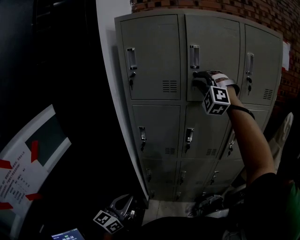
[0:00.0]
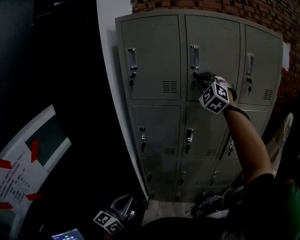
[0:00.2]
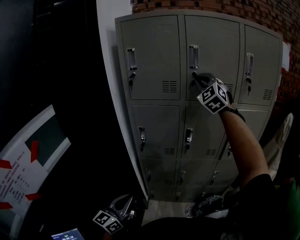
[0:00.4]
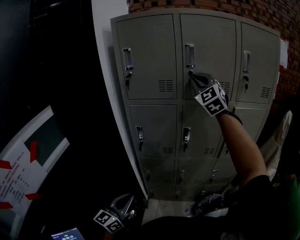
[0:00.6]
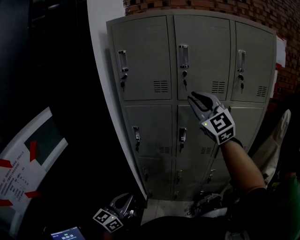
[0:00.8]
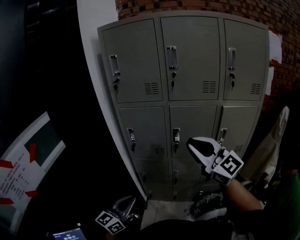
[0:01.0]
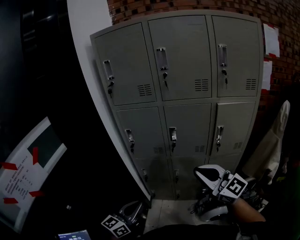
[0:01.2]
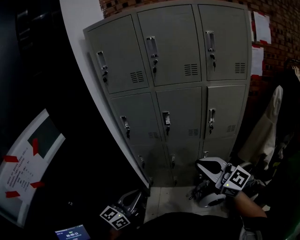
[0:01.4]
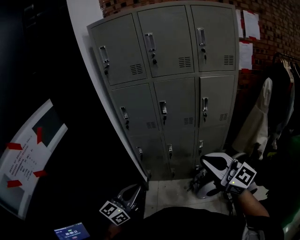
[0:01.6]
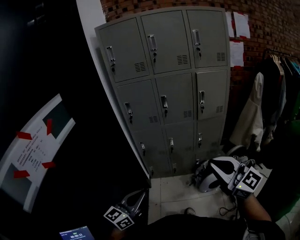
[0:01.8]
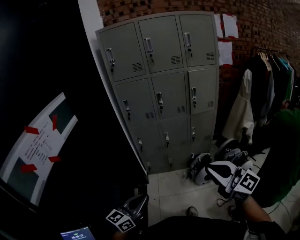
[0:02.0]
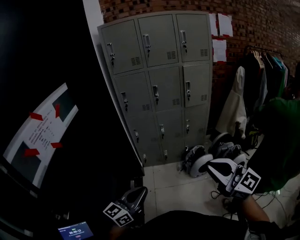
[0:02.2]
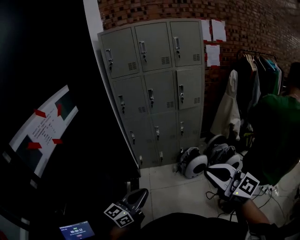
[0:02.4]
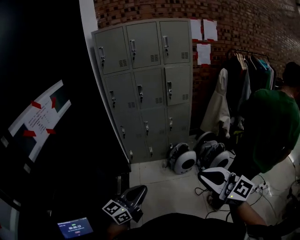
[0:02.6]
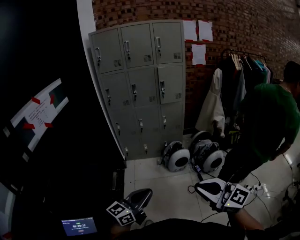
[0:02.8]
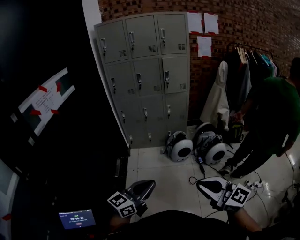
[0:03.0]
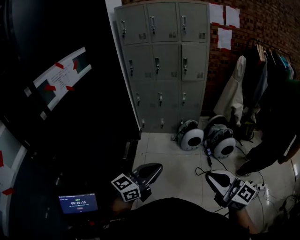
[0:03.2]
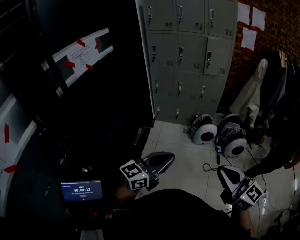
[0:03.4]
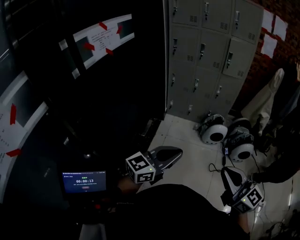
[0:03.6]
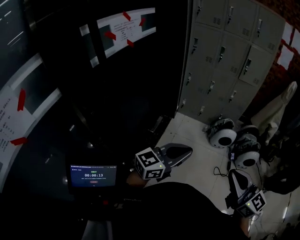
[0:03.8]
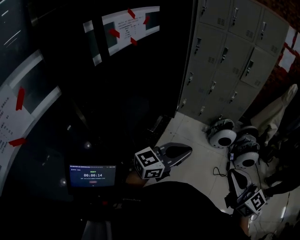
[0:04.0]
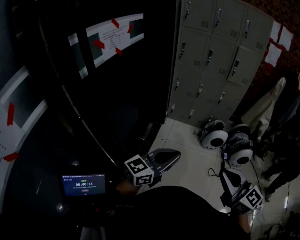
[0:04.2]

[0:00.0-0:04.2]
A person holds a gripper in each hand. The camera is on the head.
0:00.0 to 0:01.4: The left gripper travels to the right and backward by about 15 cm, while the right gripper shifts approximately 40 cm backward and downward, and twists approximately 90 degrees clockwise, seen from behind.
0:01.4 to 0:02.8: The pair of grippers is taken backward, about 60 cm. The left gripper rotates approximately 20 degrees.
0:02.8 to 0:04.2: The grippers both shift to the left by some 10 cm.

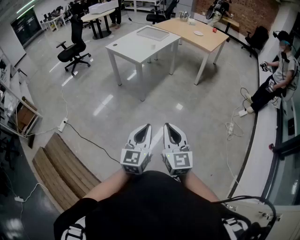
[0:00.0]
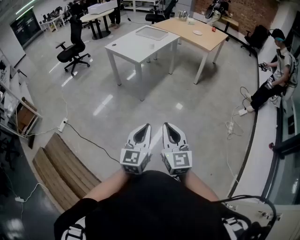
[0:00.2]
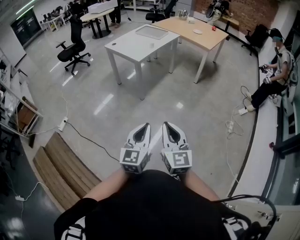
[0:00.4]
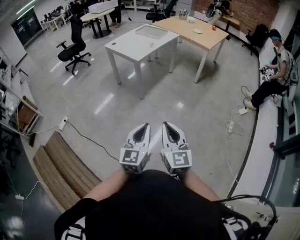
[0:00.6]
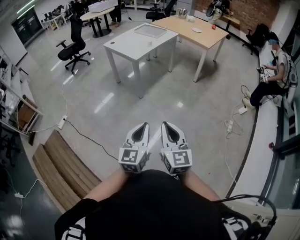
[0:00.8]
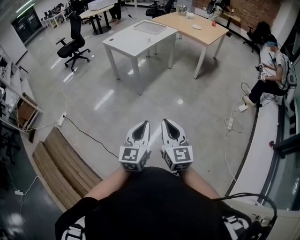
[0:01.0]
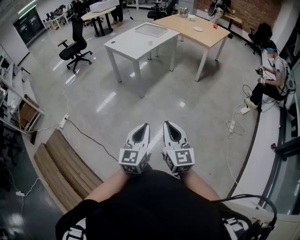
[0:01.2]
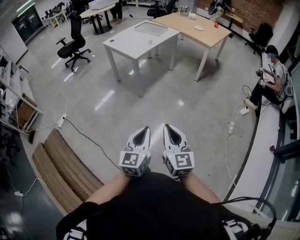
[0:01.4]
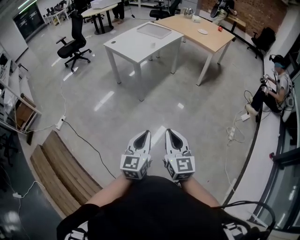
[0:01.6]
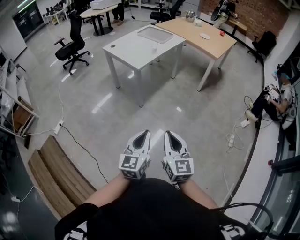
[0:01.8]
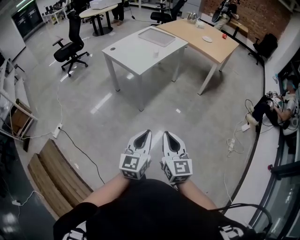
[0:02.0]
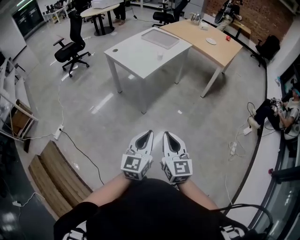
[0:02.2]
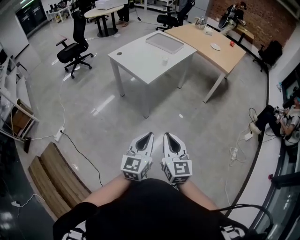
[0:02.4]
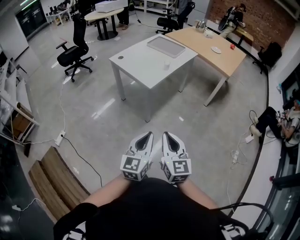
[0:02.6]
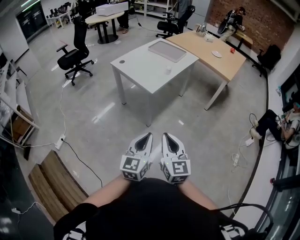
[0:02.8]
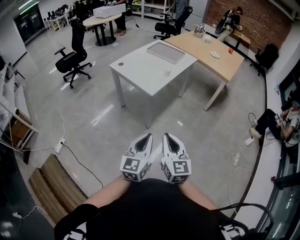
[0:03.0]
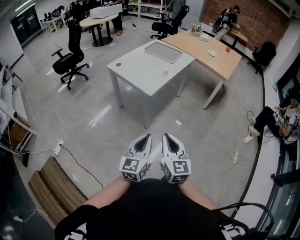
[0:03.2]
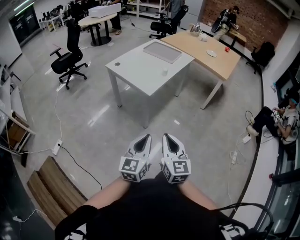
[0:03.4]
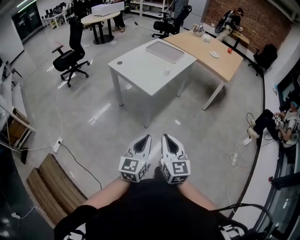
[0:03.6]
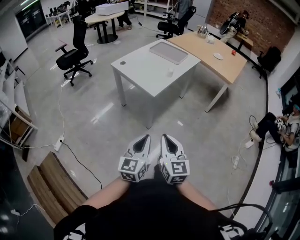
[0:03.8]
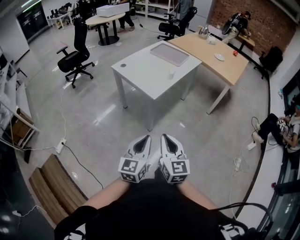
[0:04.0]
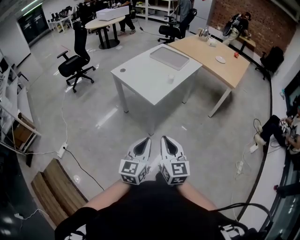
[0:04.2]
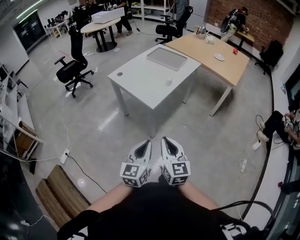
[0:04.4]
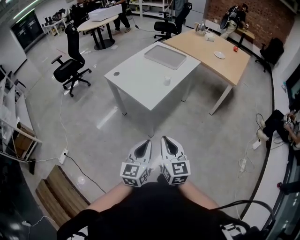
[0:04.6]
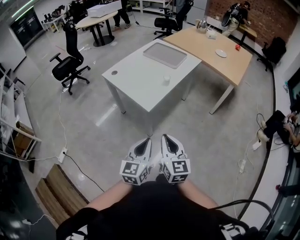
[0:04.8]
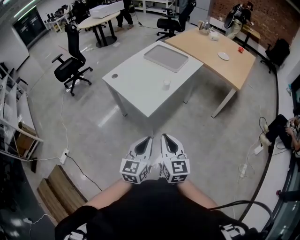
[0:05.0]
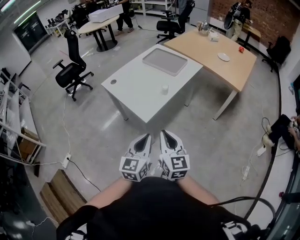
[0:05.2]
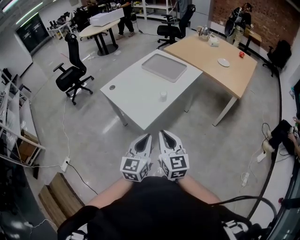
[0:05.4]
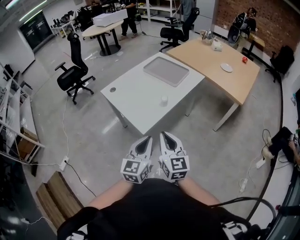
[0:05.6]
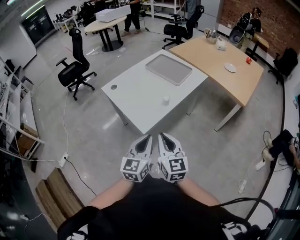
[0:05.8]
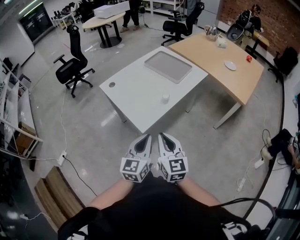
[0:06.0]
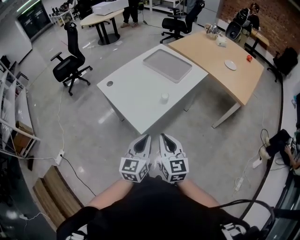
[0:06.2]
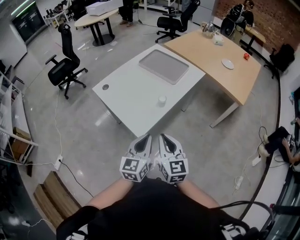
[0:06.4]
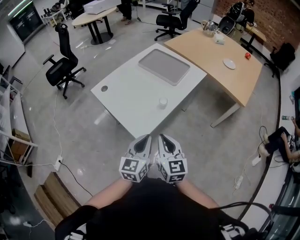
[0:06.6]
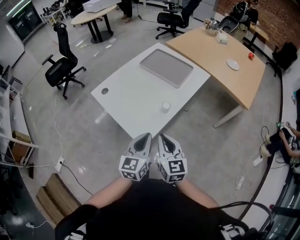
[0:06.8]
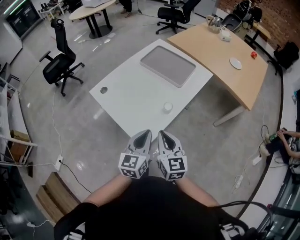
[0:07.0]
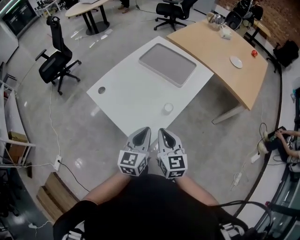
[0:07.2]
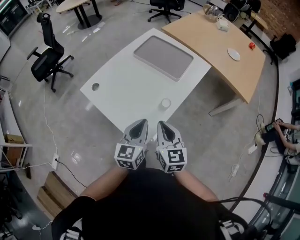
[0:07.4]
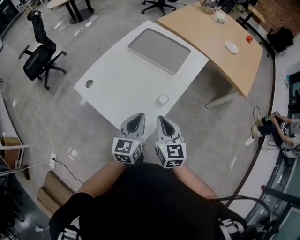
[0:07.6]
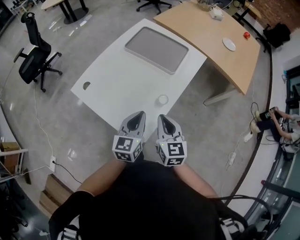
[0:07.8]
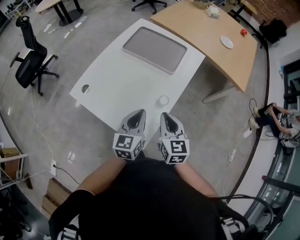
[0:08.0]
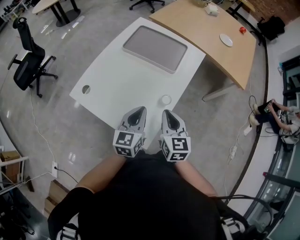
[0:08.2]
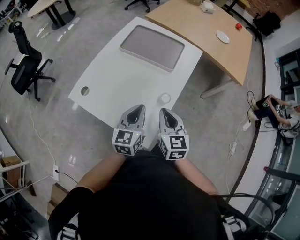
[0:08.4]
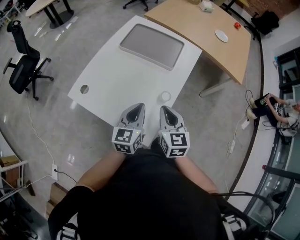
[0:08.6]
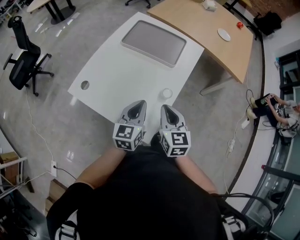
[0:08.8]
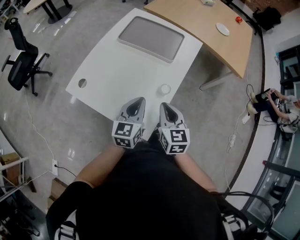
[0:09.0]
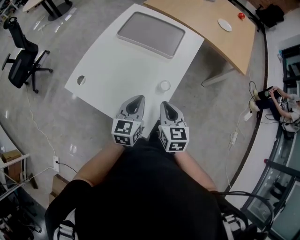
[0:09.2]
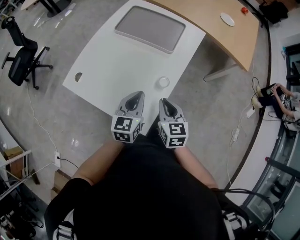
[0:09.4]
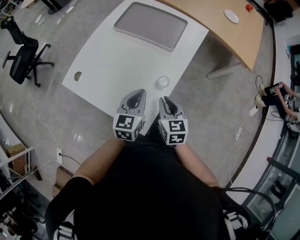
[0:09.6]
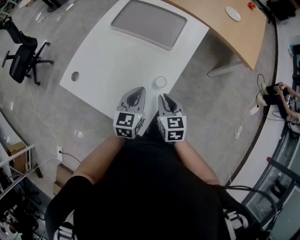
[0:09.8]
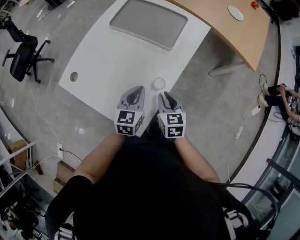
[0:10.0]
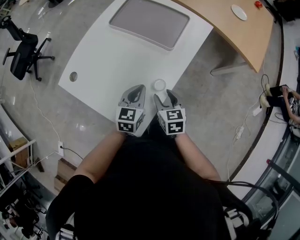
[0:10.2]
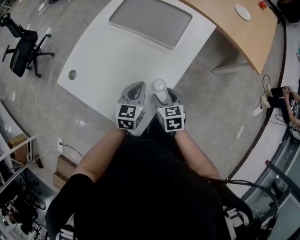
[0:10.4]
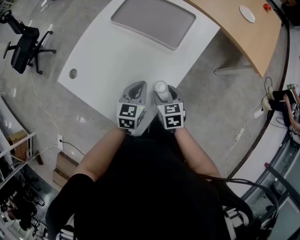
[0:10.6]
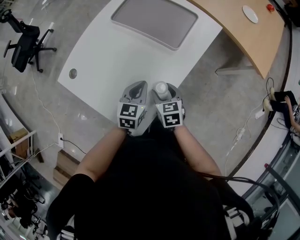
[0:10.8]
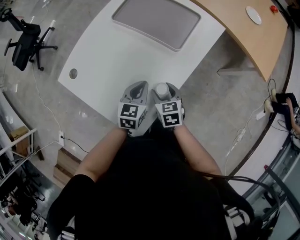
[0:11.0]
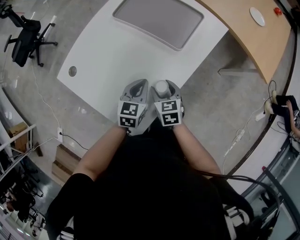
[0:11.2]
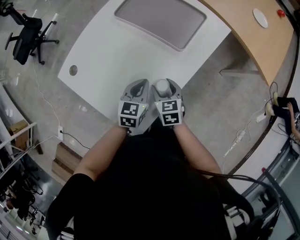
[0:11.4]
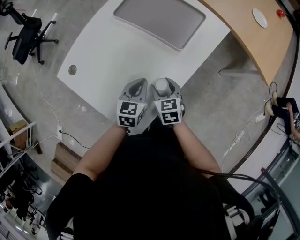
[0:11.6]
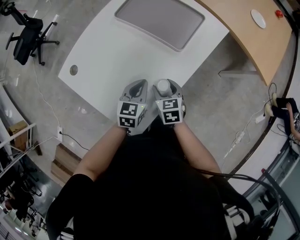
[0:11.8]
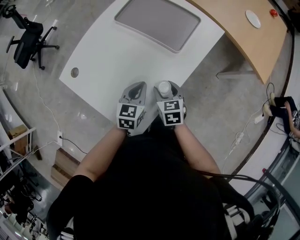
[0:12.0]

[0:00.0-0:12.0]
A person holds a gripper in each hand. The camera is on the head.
0:00.0 to 0:01.6: The left gripper heads forward and downward, covering about 10 cm. Meanwhile the right gripper travels forward and to the right by some 10 cm.
0:01.6 to 0:03.0: The grippers both shift forward and to the left by roughly 35 cm.
0:03.0 to 0:04.4: The two grippers go roughly 10 cm forward.
0:04.4 to 0:06.0: The grippers both shift forward by about 25 cm.
0:06.0 to 0:07.6: Both grippers travel together forward, approximately 30 cm.
0:07.6 to 0:09.0: The left gripper ends up approximately 5 cm from where it was.
0:09.0 to 0:10.4: The left gripper travels downward, forward and to the right by about 15 cm, while the right gripper is displaced downward and forward by approximately 20 cm, swivels approximately 20 degrees, and opens up.
0:10.4 to 0:12.0: The right gripper is displaced forward by approximately 5 cm.

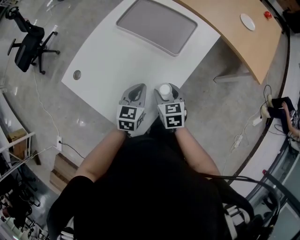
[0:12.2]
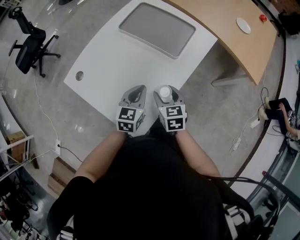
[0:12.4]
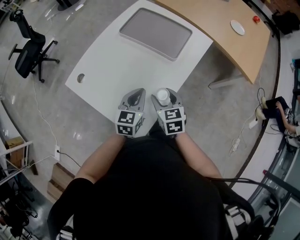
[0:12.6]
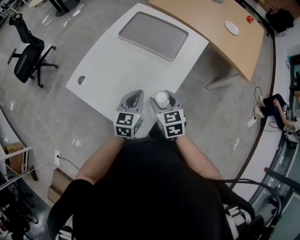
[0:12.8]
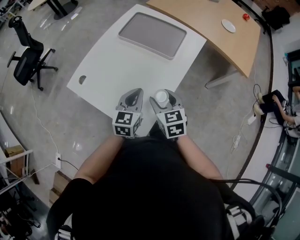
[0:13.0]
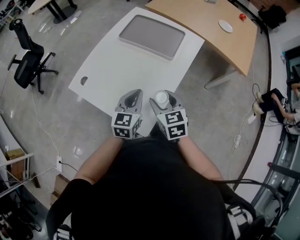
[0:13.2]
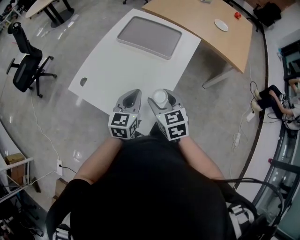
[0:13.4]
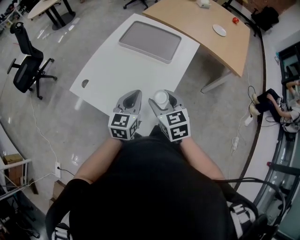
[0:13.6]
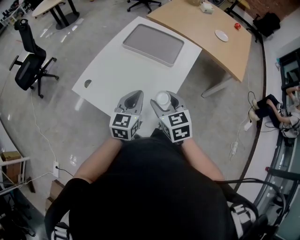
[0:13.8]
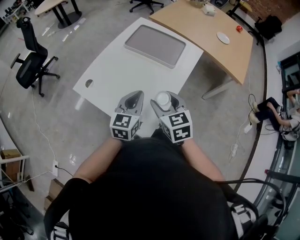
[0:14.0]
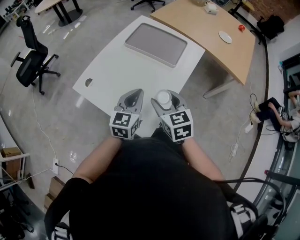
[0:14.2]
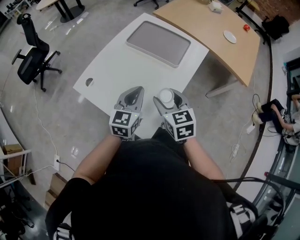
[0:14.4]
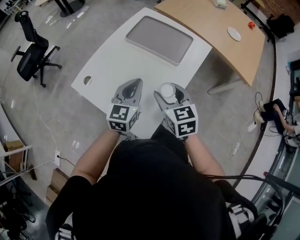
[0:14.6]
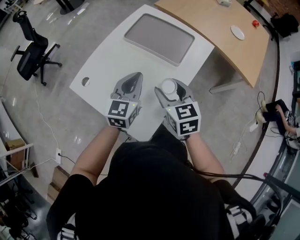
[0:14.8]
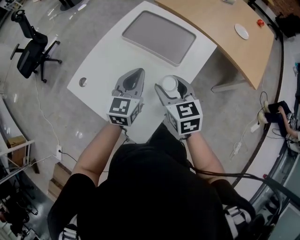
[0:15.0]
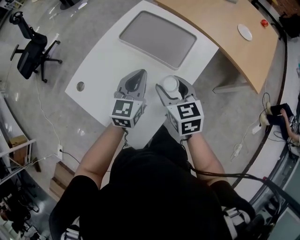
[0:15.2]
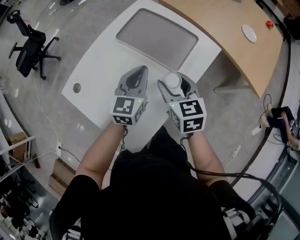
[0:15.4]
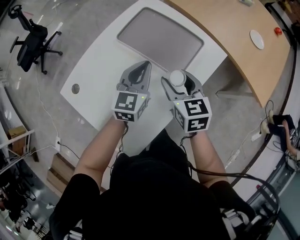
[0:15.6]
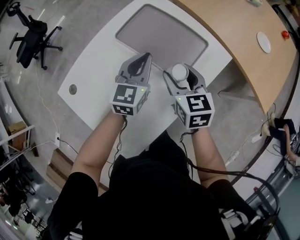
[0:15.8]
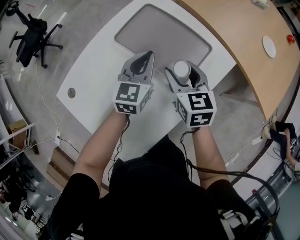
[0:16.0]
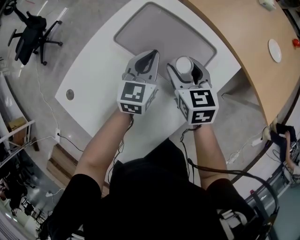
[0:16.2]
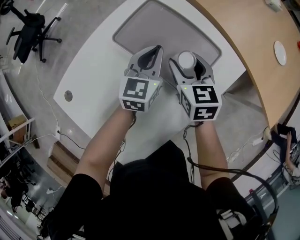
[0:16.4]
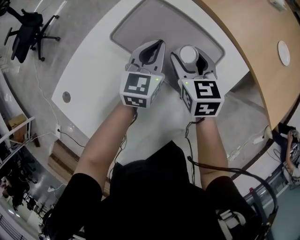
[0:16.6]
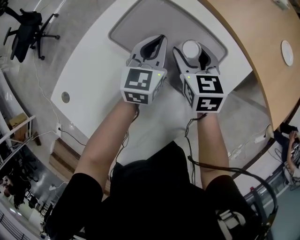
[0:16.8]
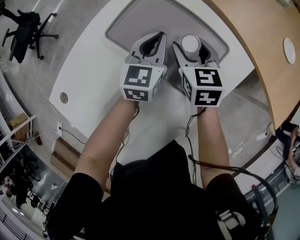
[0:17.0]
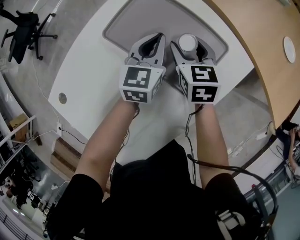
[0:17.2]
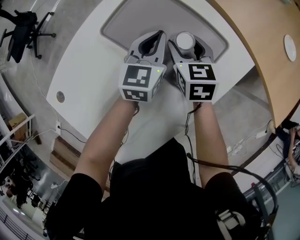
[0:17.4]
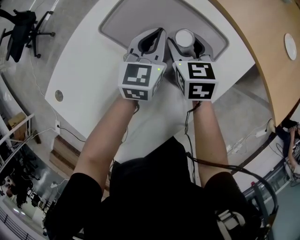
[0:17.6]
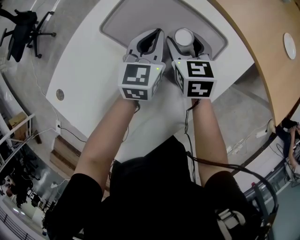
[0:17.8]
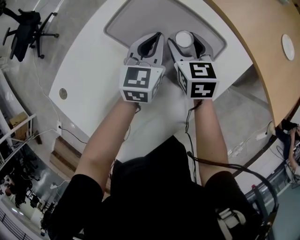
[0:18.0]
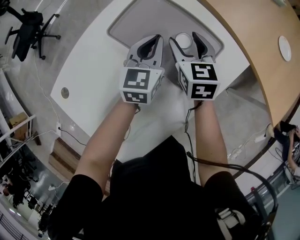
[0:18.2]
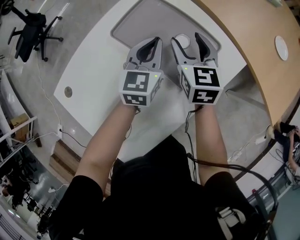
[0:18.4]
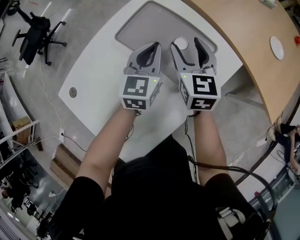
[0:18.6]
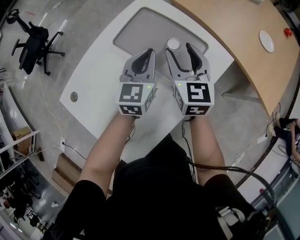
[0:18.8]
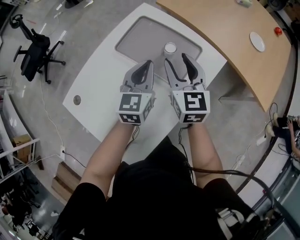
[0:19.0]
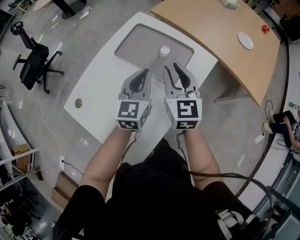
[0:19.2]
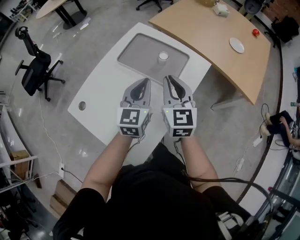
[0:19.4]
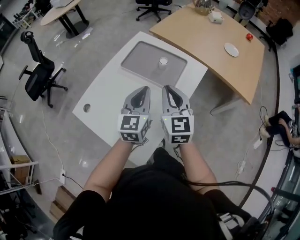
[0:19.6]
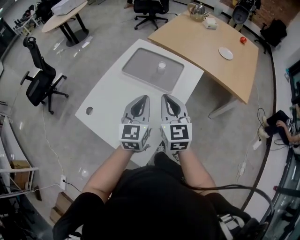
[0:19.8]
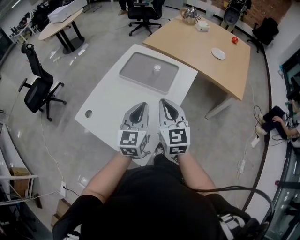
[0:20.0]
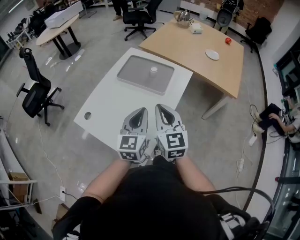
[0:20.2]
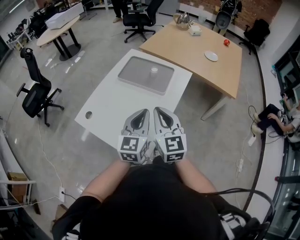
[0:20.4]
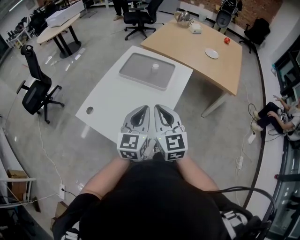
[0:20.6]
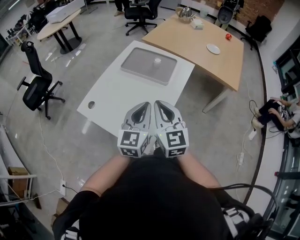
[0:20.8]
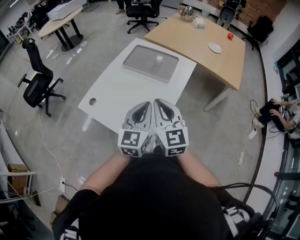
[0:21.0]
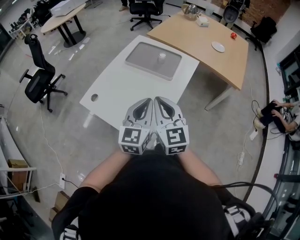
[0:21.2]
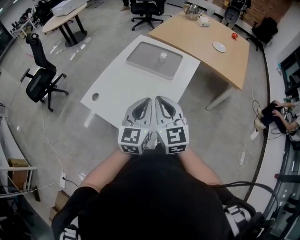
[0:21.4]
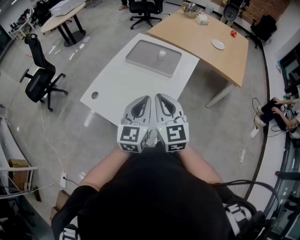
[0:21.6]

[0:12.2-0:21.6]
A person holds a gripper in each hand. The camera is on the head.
0:12.2 to 0:13.8: The two grippers go about 20 cm upward, backward and to the left.
0:13.8 to 0:15.4: The left gripper shifts roughly 25 cm forward; the right gripper is displaced forward and to the right by some 25 cm.
0:15.4 to 0:17.0: The two grippers go about 30 cm forward and downward.
0:17.0 to 0:18.4: The right gripper goes about 5 cm upward. Meanwhile the left gripper moves about 5 cm.
0:18.4 to 0:20.0: Both grippers move backward and upward, approximately 40 cm. The right gripper turns by about 20 degrees, and closes.
0:20.0 to 0:21.6: The left gripper heads backward, covering some 15 cm, while the right gripper moves backward and to the left, roughly 15 cm.
